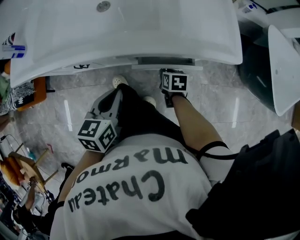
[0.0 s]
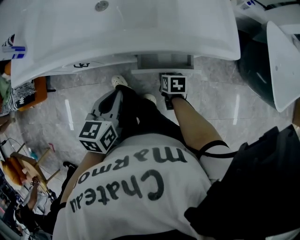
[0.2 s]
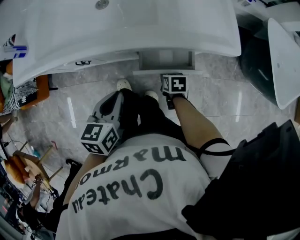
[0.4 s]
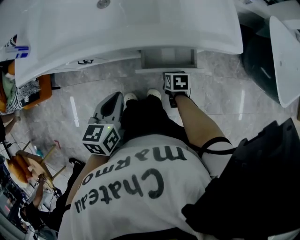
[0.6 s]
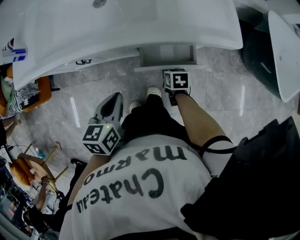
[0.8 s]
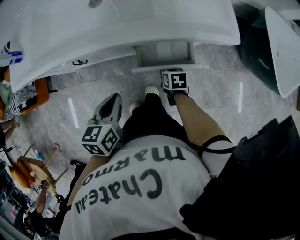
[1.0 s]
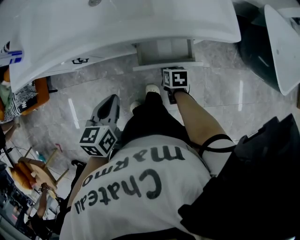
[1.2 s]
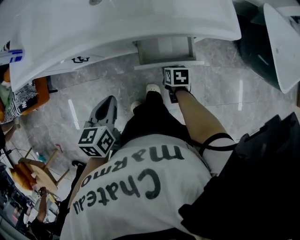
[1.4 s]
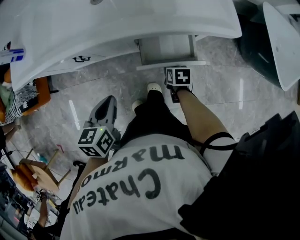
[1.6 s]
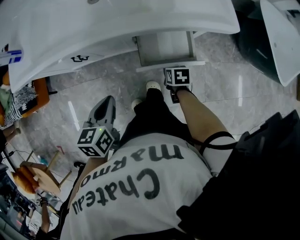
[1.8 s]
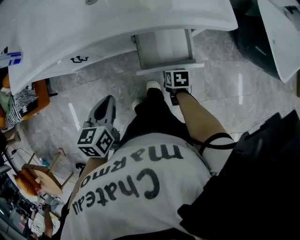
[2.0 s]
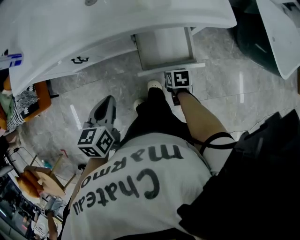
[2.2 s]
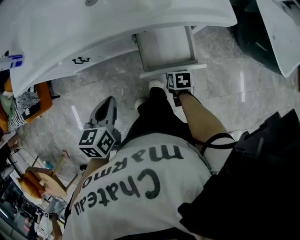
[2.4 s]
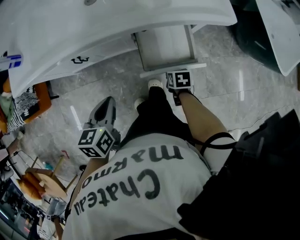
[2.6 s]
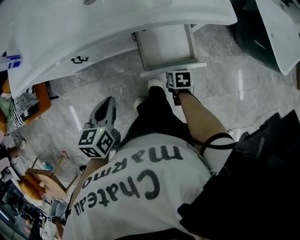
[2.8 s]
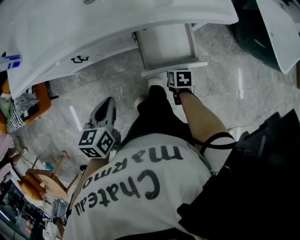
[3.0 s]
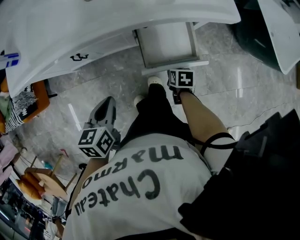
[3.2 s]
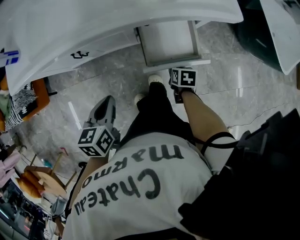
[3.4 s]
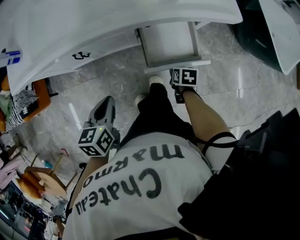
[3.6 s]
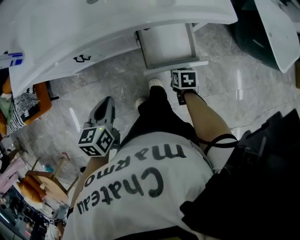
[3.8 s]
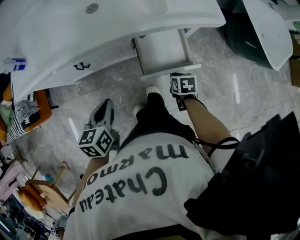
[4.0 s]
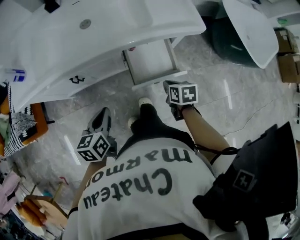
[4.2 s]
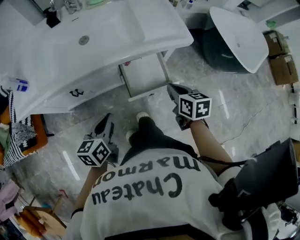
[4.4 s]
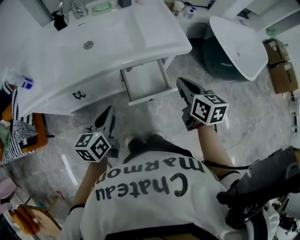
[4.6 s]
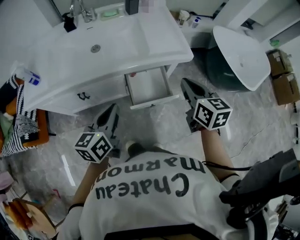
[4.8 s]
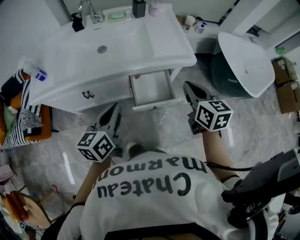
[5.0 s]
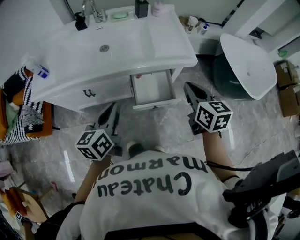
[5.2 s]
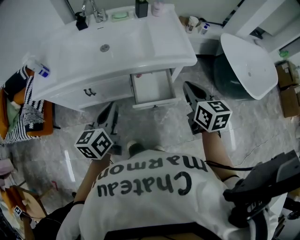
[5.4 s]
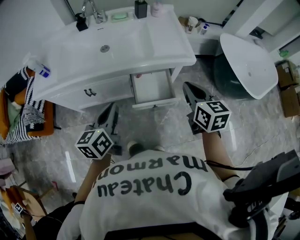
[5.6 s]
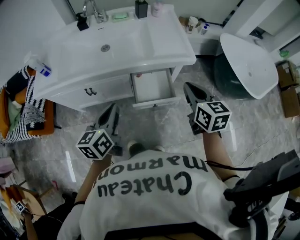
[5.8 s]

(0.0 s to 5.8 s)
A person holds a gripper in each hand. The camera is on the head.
0.0 s - 1.4 s: Both grippers travel together backward, about 5 cm.
1.4 s - 2.8 s: The right gripper is displaced backward by roughly 5 cm.
2.8 s - 4.4 s: The right gripper goes about 25 cm upward, changes its angle by roughly 30 degrees, and closes. The left gripper heads upward, covering about 5 cm.
4.4 s - 5.8 s: The grippers both shift upward by about 15 cm. The right gripper rotates roughly 20 degrees.

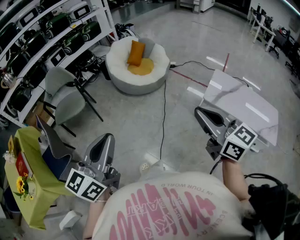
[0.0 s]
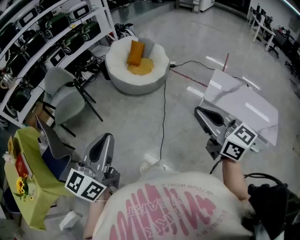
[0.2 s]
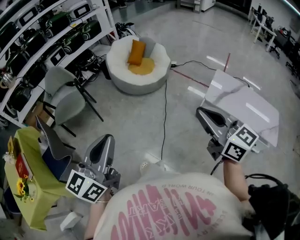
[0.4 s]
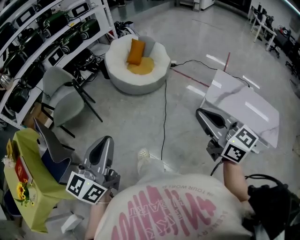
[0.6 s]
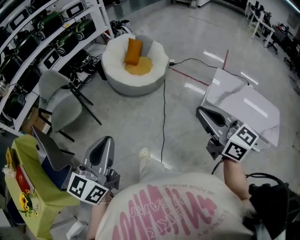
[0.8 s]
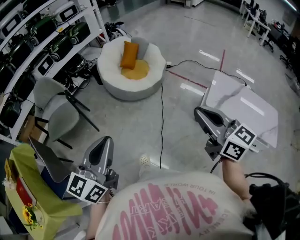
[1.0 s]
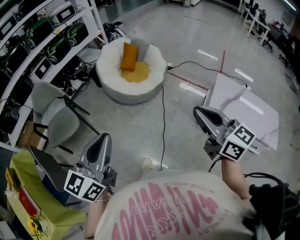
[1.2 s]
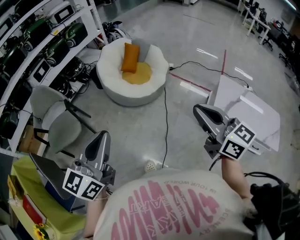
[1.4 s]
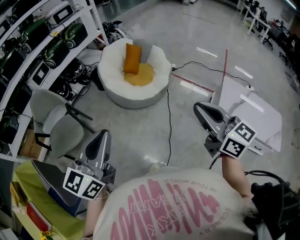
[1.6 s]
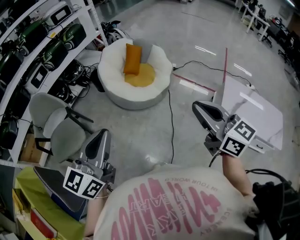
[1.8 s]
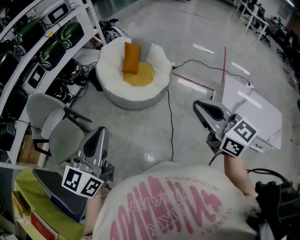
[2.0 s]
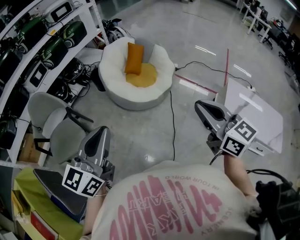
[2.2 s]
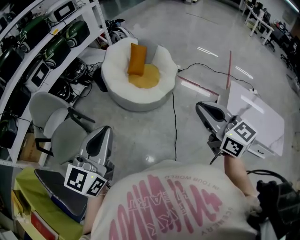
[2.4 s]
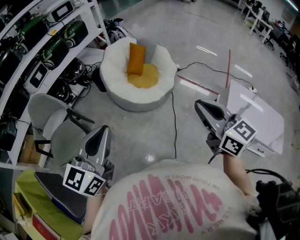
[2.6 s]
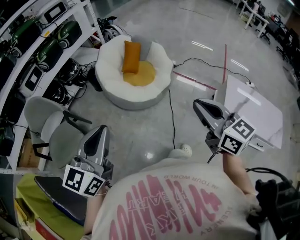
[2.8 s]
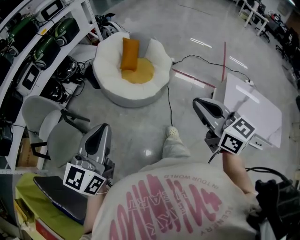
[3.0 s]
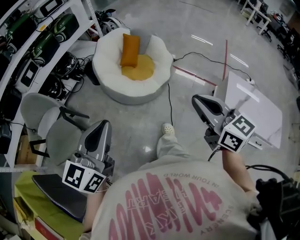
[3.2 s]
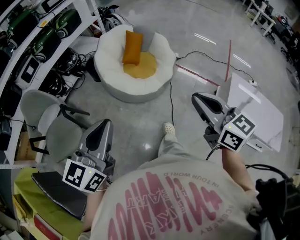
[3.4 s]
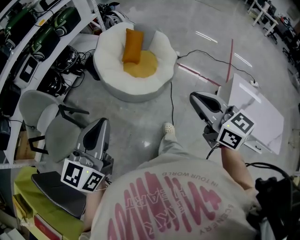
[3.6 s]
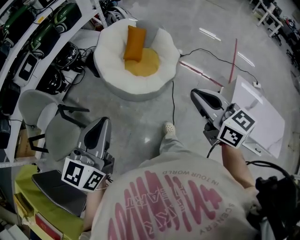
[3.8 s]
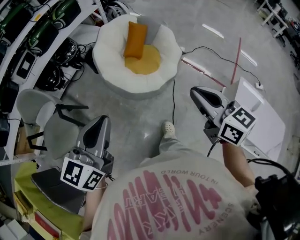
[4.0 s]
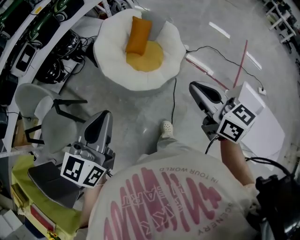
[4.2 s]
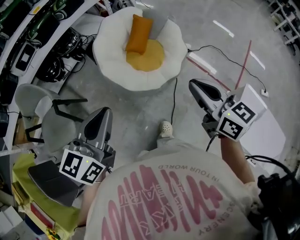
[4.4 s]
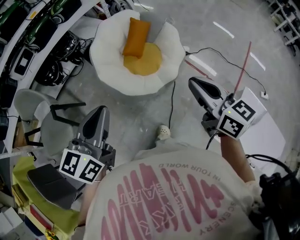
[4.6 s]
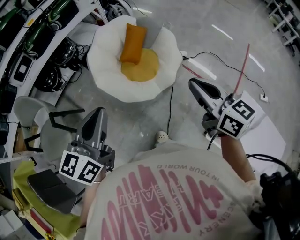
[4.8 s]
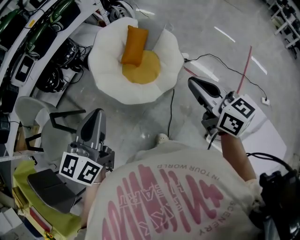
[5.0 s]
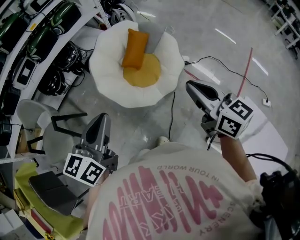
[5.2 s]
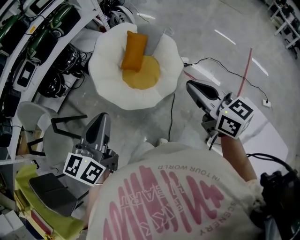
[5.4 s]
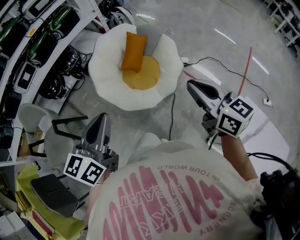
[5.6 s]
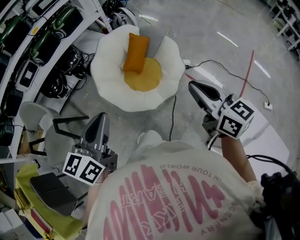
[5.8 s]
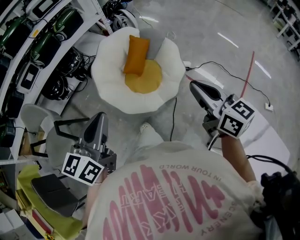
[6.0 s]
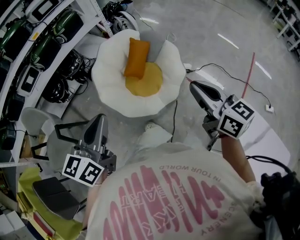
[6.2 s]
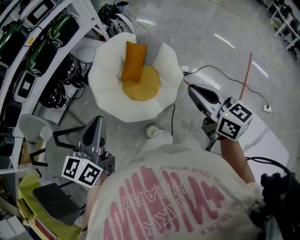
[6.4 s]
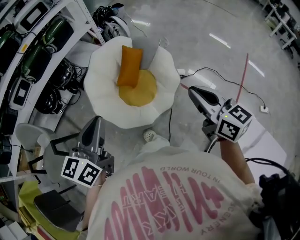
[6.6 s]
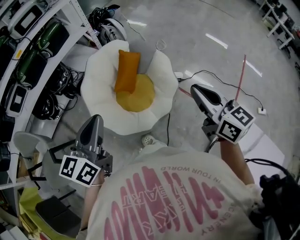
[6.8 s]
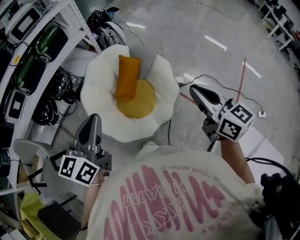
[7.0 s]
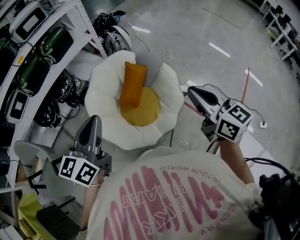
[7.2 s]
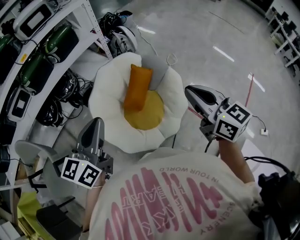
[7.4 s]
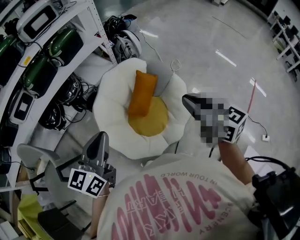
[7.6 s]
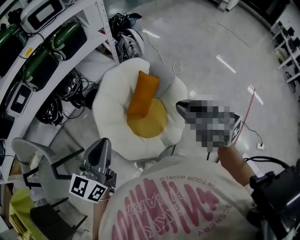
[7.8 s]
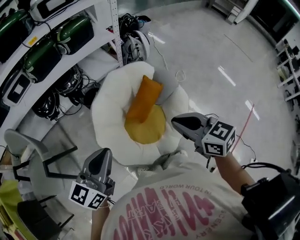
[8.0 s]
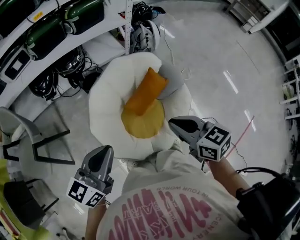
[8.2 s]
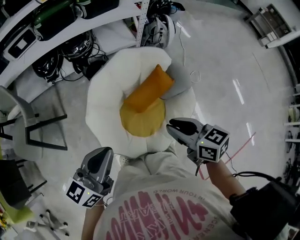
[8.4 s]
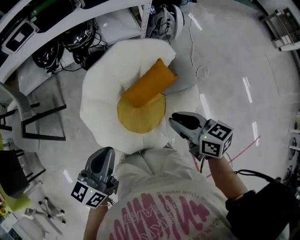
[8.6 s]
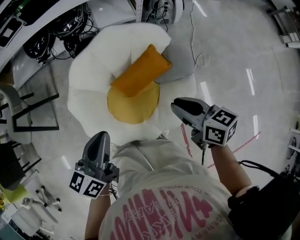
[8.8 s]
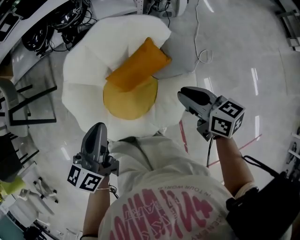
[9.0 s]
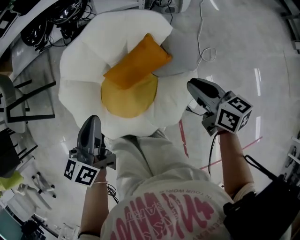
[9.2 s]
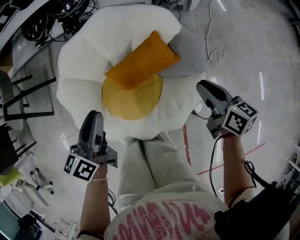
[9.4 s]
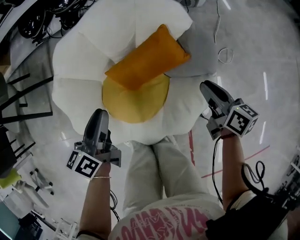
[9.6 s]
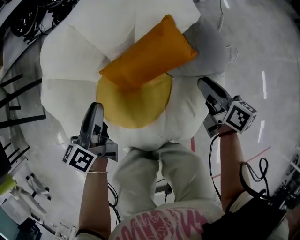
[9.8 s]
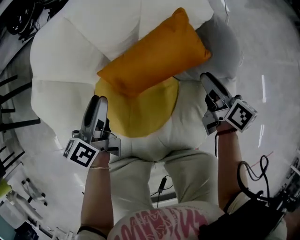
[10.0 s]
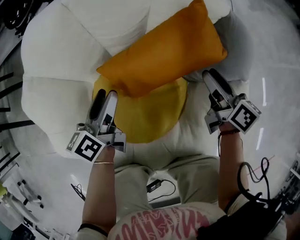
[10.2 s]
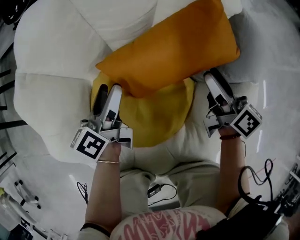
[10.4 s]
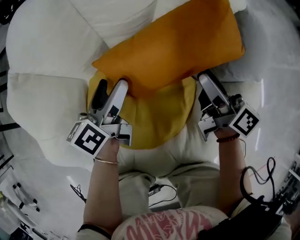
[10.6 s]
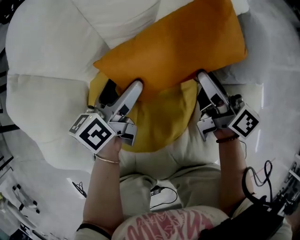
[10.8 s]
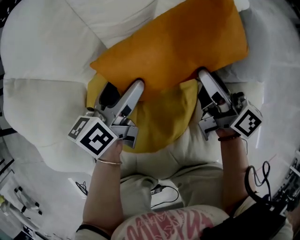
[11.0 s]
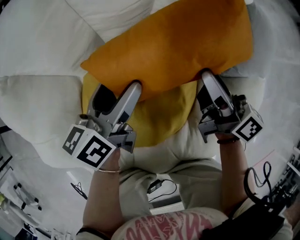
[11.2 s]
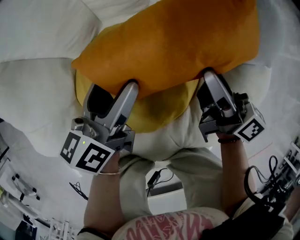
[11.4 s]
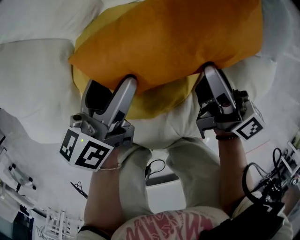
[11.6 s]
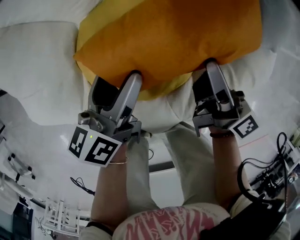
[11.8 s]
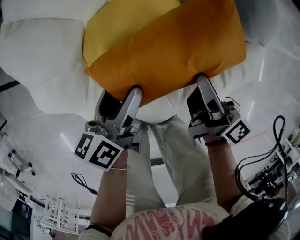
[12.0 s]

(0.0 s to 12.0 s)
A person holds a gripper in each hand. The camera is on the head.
0.0 s - 1.6 s: The two grippers go about 30 cm forward.
1.6 s - 3.0 s: Both grippers move forward, some 10 cm.
3.0 s - 4.4 s: The left gripper shifts approximately 20 cm forward and to the right. The right gripper travels forward by approximately 25 cm.
4.4 s - 6.0 s: The left gripper goes some 10 cm forward and to the right. The right gripper shifts about 15 cm to the right and forward.
6.0 s - 7.6 s: The grippers both shift forward by approximately 30 cm.
7.6 s - 9.0 s: The left gripper travels downward by some 20 cm, and changes its angle by approximately 40 degrees. Meanwhile the right gripper shifts by roughly 35 cm, and swivels approximately 40 degrees.
9.0 s - 10.4 s: The grippers both shift downward by about 35 cm. The right gripper swivels roughly 30 degrees, and opens. The left gripper changes its angle by about 20 degrees, and opens.
10.4 s - 12.0 s: The left gripper moves backward, about 15 cm. The right gripper travels backward and to the left by roughly 20 cm, turns by some 30 degrees, and closes up.

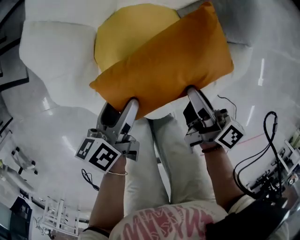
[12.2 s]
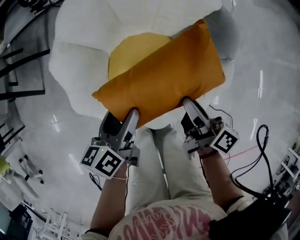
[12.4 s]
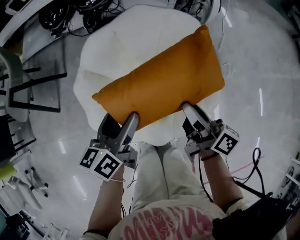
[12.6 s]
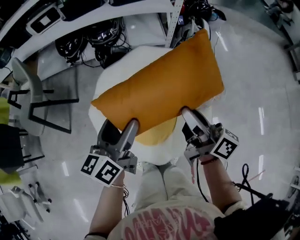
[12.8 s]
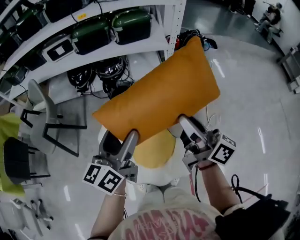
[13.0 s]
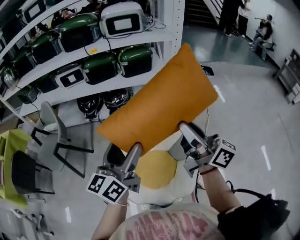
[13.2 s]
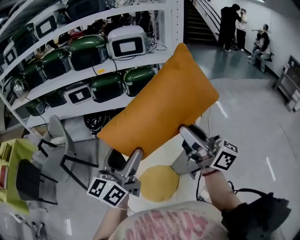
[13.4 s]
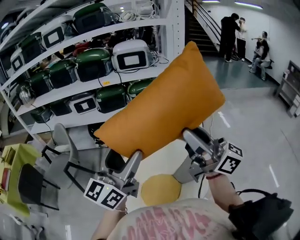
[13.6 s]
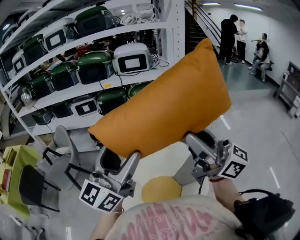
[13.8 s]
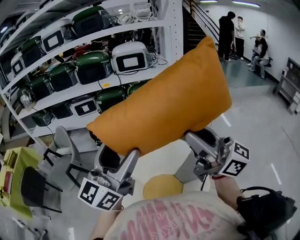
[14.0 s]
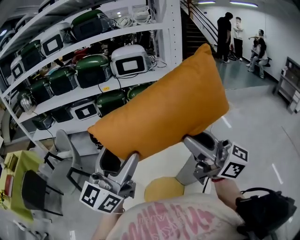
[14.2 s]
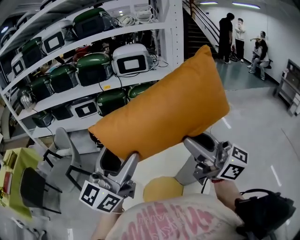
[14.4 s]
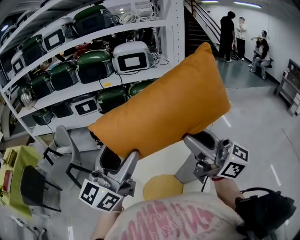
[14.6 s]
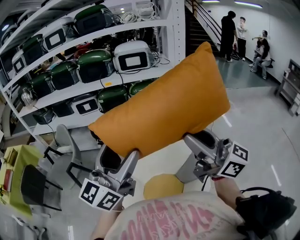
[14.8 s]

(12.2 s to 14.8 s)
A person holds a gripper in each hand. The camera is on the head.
12.2 s - 13.4 s: Both grippers travel together upward, about 70 cm. The right gripper points its fingers approximately 40 degrees further upward; the left gripper angles its fingers upward, by roughly 50 degrees.
13.4 s - 14.8 s: The left gripper is displaced upward by some 10 cm, while the right gripper is displaced upward and backward by some 10 cm.

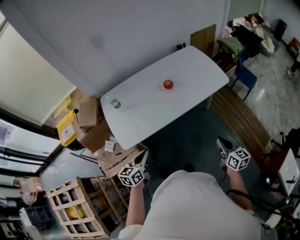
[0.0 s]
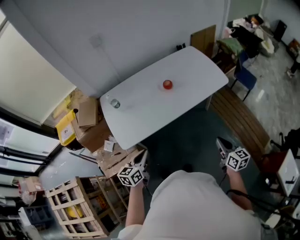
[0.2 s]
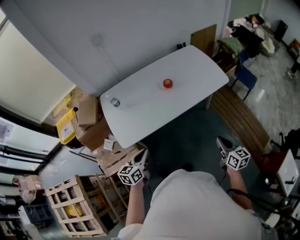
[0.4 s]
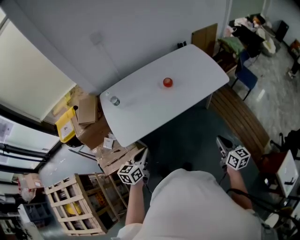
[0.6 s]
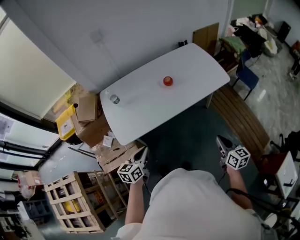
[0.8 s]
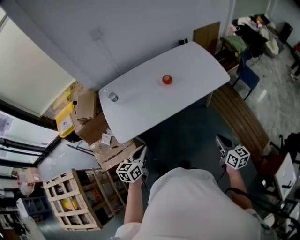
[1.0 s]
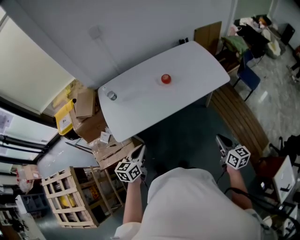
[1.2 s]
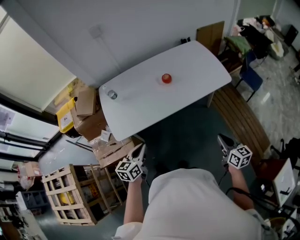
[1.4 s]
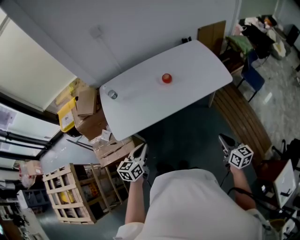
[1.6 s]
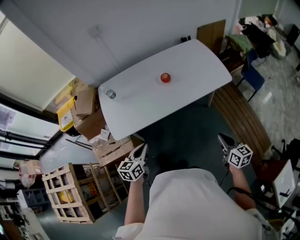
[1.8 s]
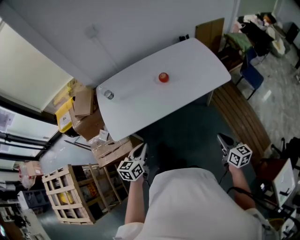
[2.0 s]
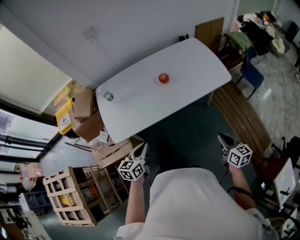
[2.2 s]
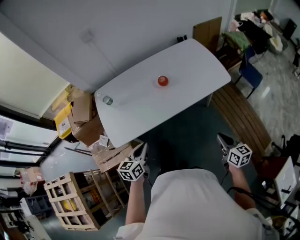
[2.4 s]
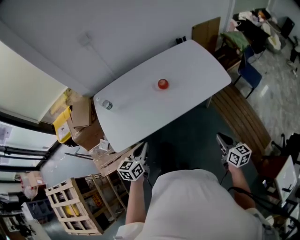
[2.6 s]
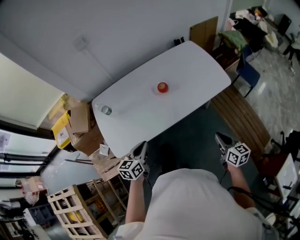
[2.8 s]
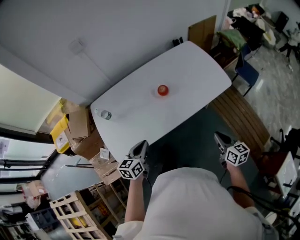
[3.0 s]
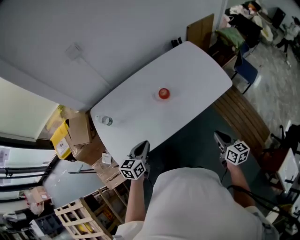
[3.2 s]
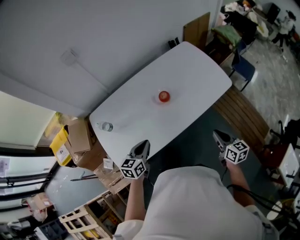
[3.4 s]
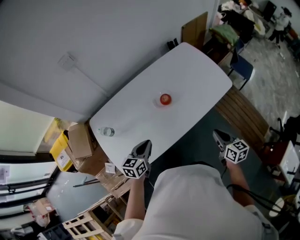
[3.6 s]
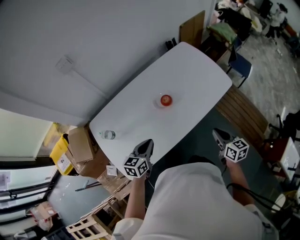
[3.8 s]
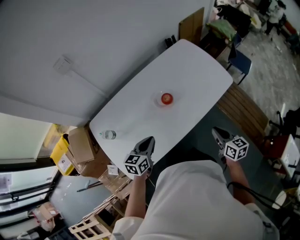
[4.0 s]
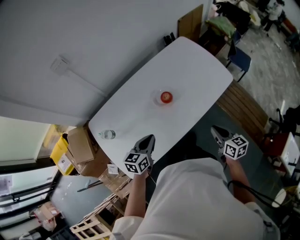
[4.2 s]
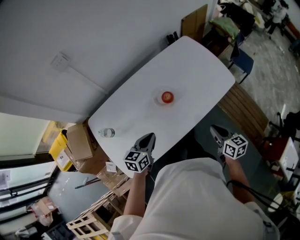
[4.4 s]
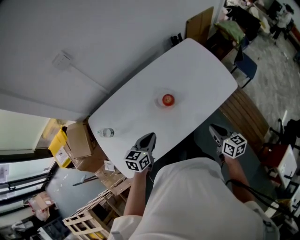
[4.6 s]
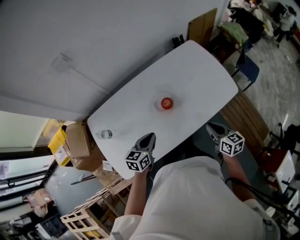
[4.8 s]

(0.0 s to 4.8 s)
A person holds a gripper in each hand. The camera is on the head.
0.0 s - 1.6 s: Both grippers travel together to the right, about 5 cm.
1.6 s - 3.2 s: Both grippers travel together forward, approximately 15 cm.
3.2 s - 4.8 s: The right gripper travels forward and to the left by roughly 15 cm; the left gripper travels forward by about 15 cm.
